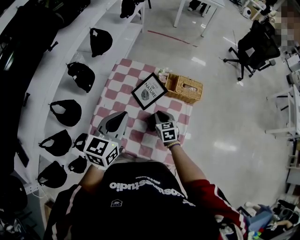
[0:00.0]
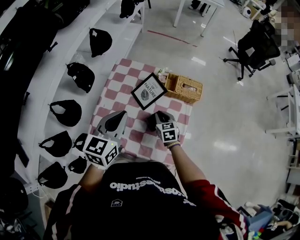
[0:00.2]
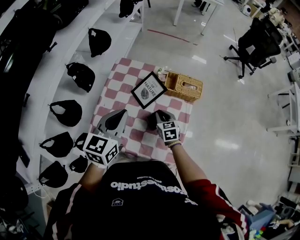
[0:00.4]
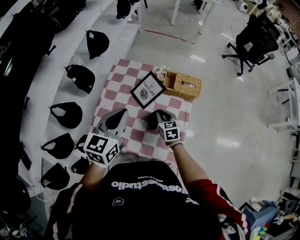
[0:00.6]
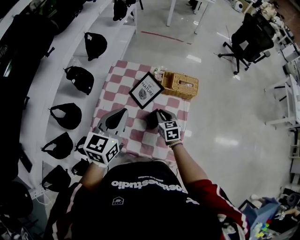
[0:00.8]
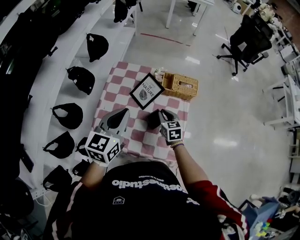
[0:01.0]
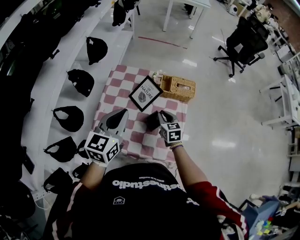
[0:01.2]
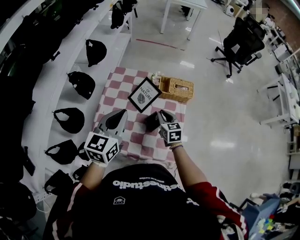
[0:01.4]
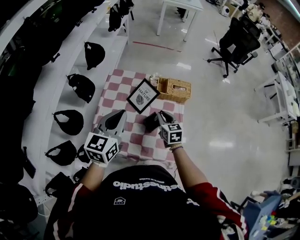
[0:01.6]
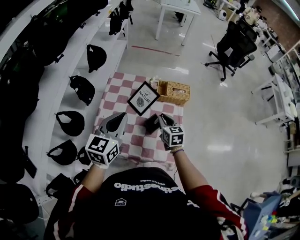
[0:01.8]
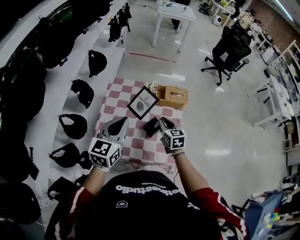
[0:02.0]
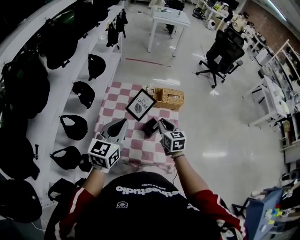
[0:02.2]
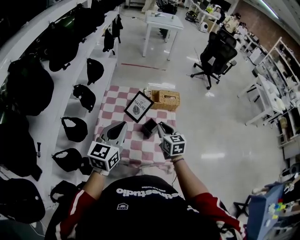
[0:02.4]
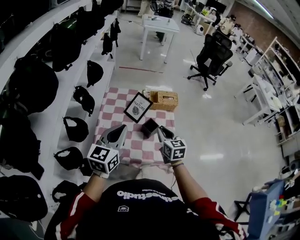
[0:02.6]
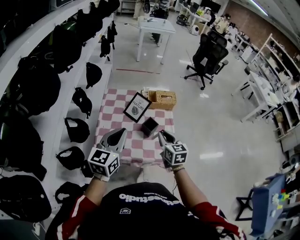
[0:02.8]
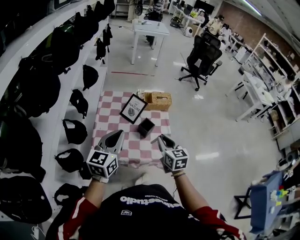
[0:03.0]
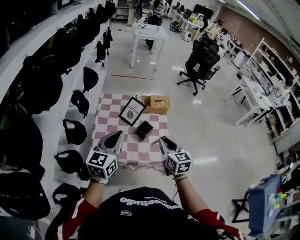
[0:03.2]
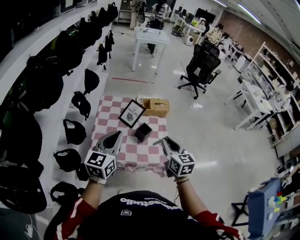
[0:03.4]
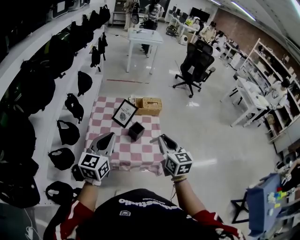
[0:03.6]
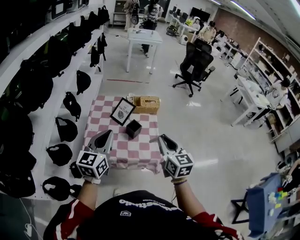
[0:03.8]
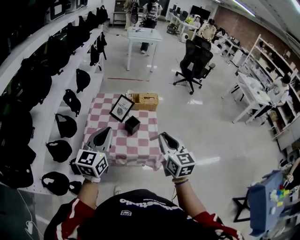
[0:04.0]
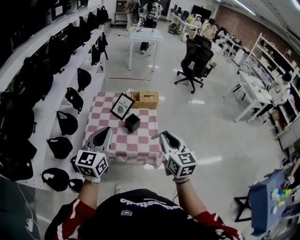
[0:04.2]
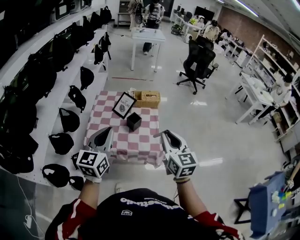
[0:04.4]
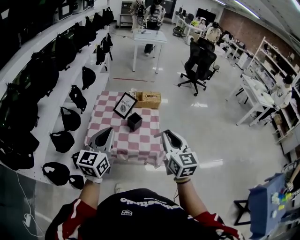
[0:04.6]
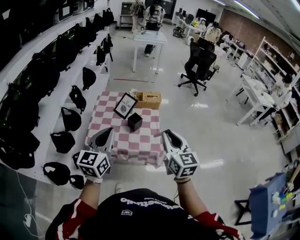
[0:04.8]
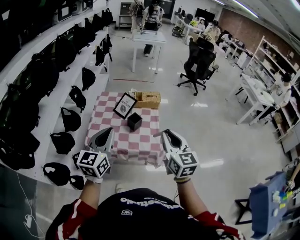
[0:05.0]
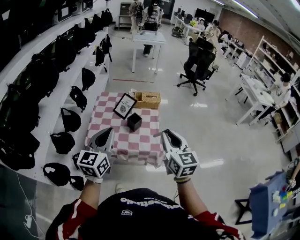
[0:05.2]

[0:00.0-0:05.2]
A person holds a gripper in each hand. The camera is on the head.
0:00.0 to 0:01.8: The left gripper shifts by approximately 5 cm, while the right gripper moves upward, roughly 10 cm.
0:01.8 to 0:03.4: The right gripper moves backward and upward, approximately 30 cm; the left gripper shifts about 15 cm backward.
0:03.4 to 0:05.2: The left gripper heads backward and to the right, covering roughly 15 cm, while the right gripper goes roughly 15 cm backward, upward and to the right.

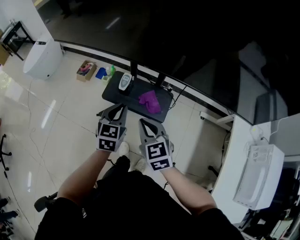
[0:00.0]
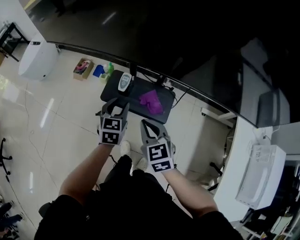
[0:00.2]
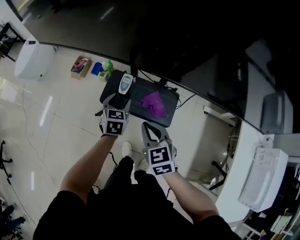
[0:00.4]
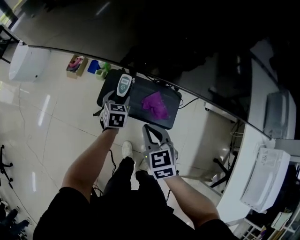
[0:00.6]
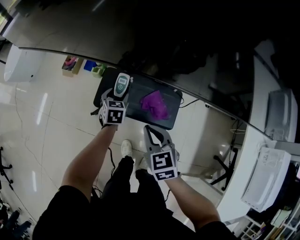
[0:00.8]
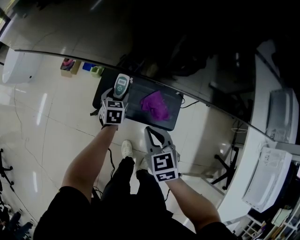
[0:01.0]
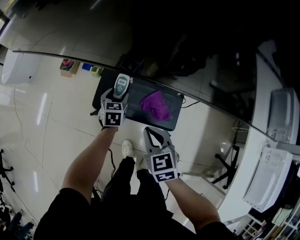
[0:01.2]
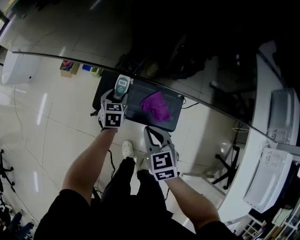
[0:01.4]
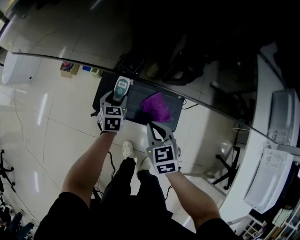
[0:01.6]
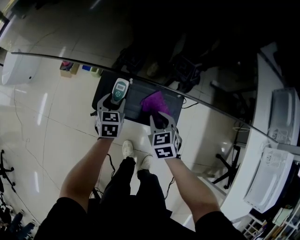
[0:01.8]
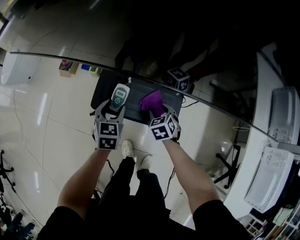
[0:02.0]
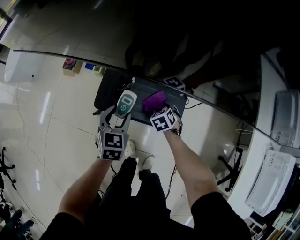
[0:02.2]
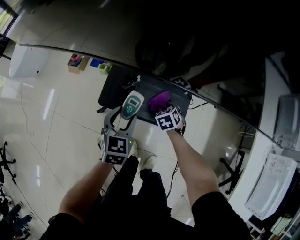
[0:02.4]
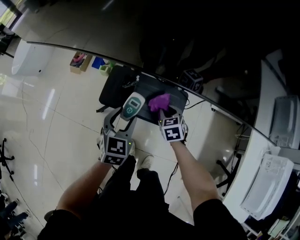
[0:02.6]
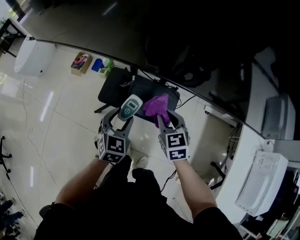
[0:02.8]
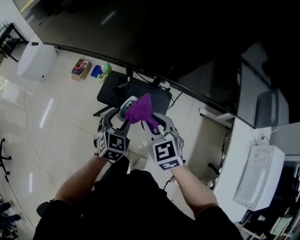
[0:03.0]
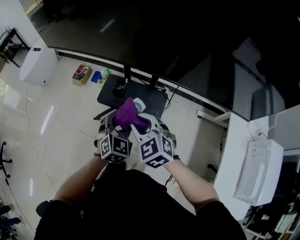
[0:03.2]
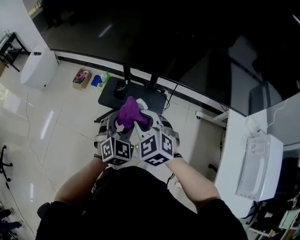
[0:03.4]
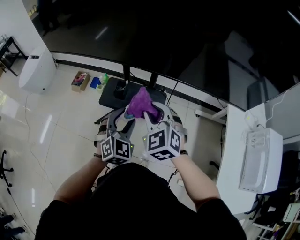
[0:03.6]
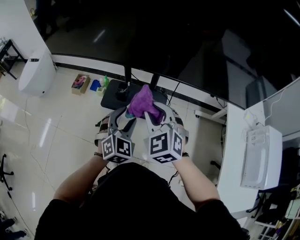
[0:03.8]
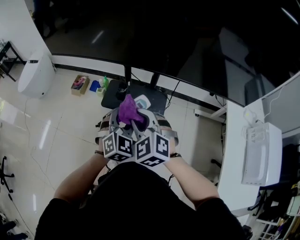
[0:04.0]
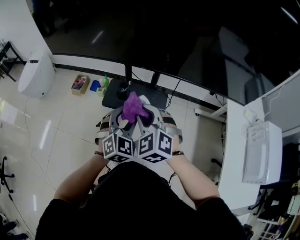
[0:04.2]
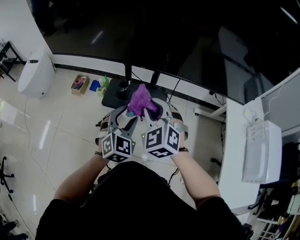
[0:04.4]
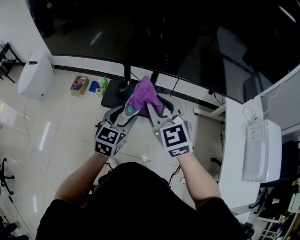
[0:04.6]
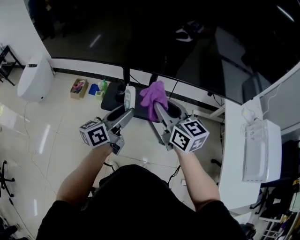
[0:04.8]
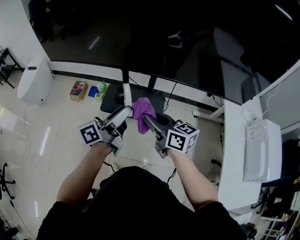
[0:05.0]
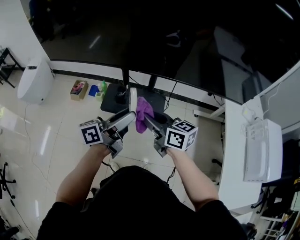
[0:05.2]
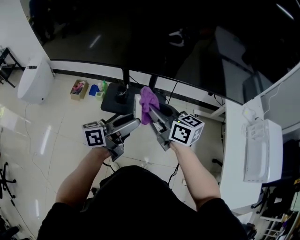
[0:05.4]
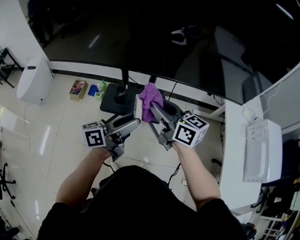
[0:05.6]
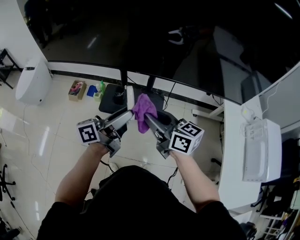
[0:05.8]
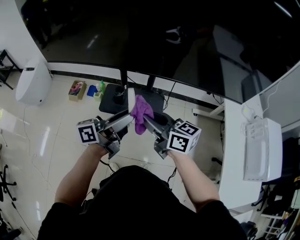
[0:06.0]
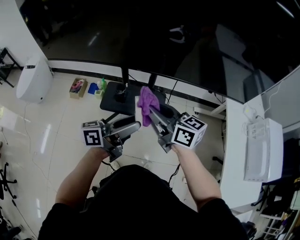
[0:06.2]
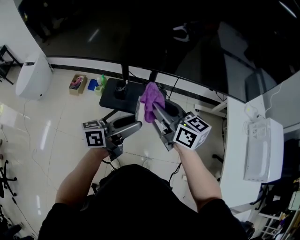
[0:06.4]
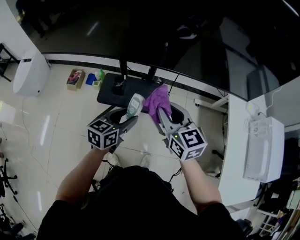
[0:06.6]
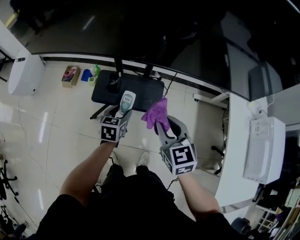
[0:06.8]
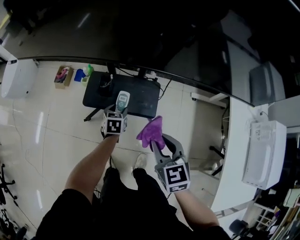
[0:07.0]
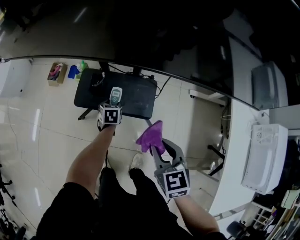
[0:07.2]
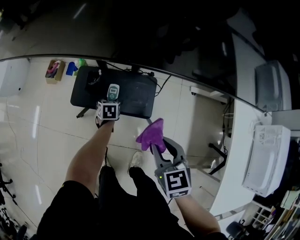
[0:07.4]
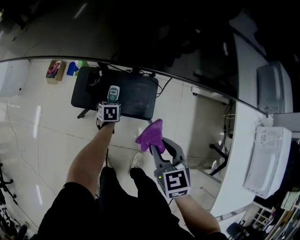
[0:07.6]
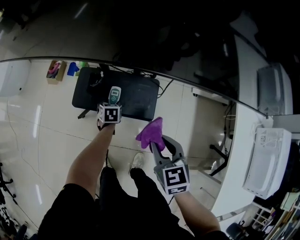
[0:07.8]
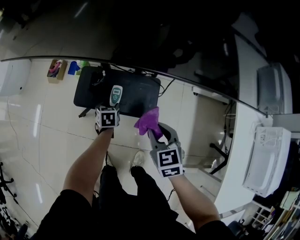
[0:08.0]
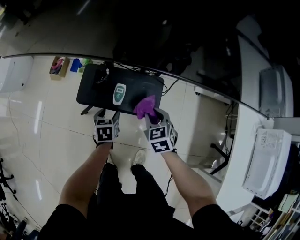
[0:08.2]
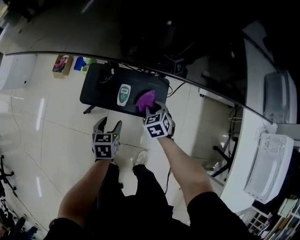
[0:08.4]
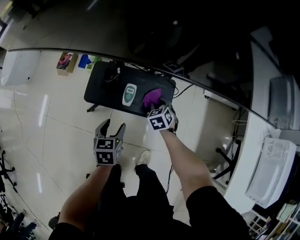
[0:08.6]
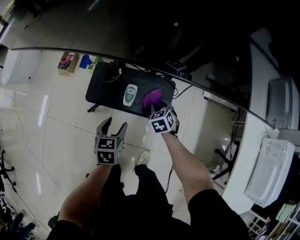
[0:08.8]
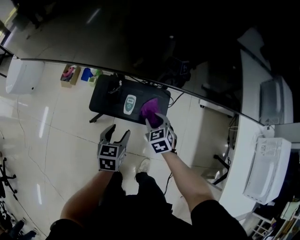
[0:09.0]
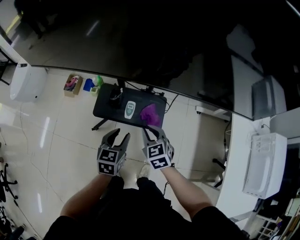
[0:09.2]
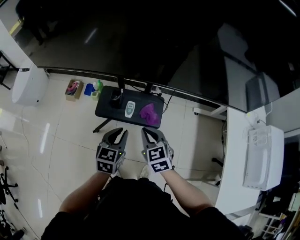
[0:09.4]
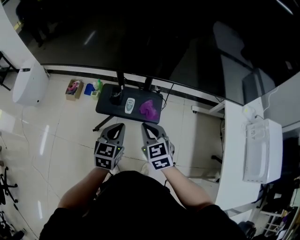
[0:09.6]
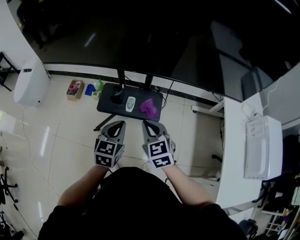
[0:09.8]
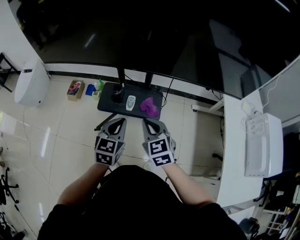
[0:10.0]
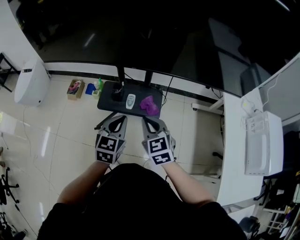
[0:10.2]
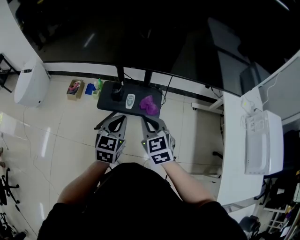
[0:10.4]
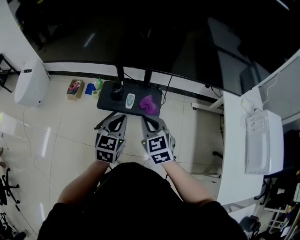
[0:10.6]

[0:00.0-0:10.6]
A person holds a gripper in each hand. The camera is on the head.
0:00.0 to 0:01.6: The grippers both shift downward and forward by roughly 25 cm. The left gripper opens up.
0:01.6 to 0:03.0: The left gripper moves backward and upward, approximately 25 cm, and changes its angle by about 20 degrees, while the right gripper shifts some 20 cm upward and backward, swivels approximately 20 degrees, and opens, then closes again.
0:03.0 to 0:04.6: The right gripper moves upward, approximately 15 cm; the left gripper moves upward and backward, roughly 15 cm, and turns by about 20 degrees.
0:04.6 to 0:06.0: The right gripper twists approximately 50 degrees clockwise, seen from behind. Meanwhile the left gripper heads upward, covering about 5 cm, and points its fingers roughly 40 degrees further upward.
0:06.0 to 0:07.6: The left gripper travels downward and forward by some 50 cm, and tips its fingers downward by some 70 degrees. Meanwhile the right gripper goes some 25 cm downward and to the right, and tilts its fingers approximately 30 degrees downward.
0:07.6 to 0:09.0: The right gripper travels downward, forward and to the left by approximately 20 cm, while the left gripper goes about 25 cm upward and backward.
0:09.0 to 0:10.6: The grippers both shift upward and backward by approximately 25 cm. The right gripper swivels approximately 20 degrees, and closes its fingers; the left gripper swivels about 20 degrees, and closes up.

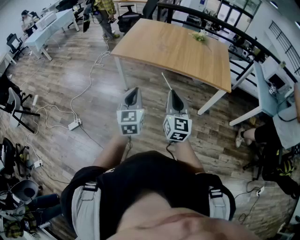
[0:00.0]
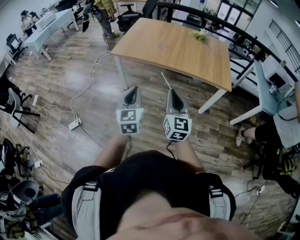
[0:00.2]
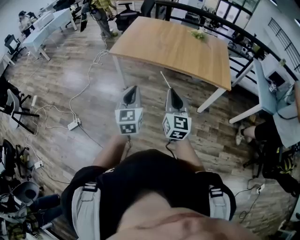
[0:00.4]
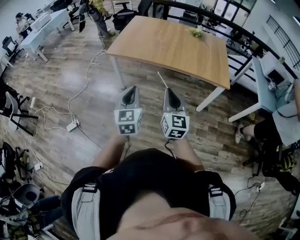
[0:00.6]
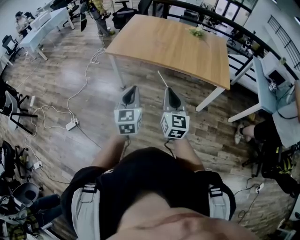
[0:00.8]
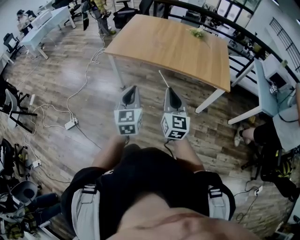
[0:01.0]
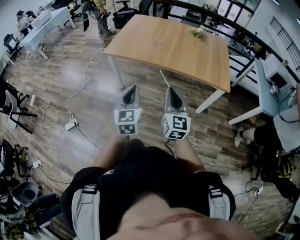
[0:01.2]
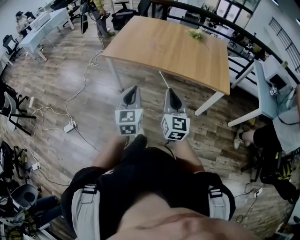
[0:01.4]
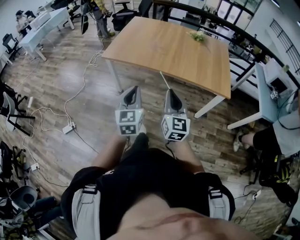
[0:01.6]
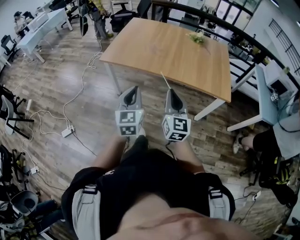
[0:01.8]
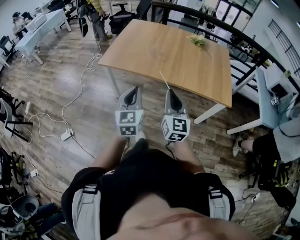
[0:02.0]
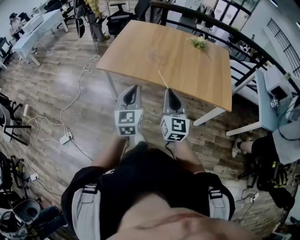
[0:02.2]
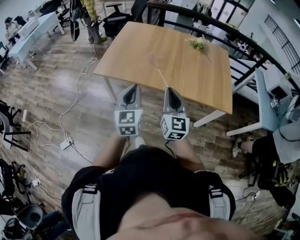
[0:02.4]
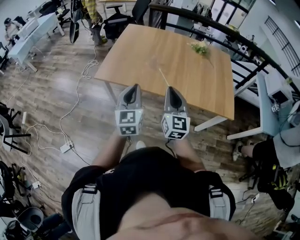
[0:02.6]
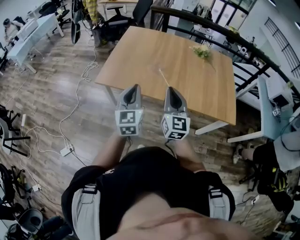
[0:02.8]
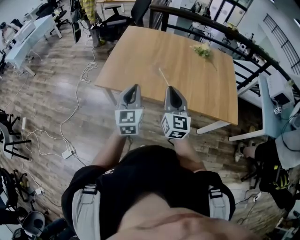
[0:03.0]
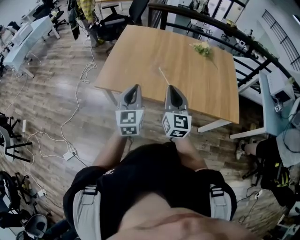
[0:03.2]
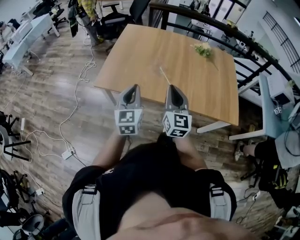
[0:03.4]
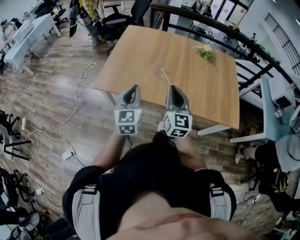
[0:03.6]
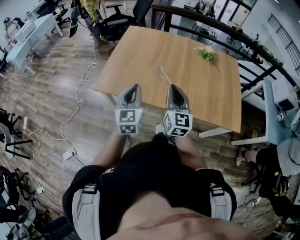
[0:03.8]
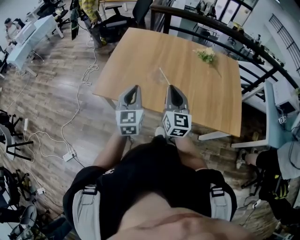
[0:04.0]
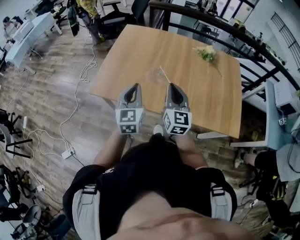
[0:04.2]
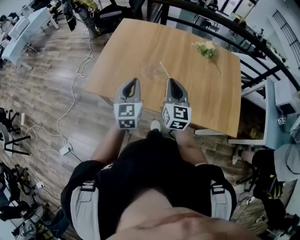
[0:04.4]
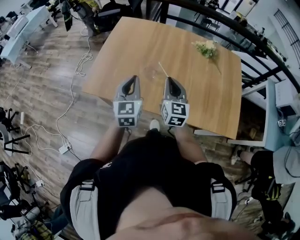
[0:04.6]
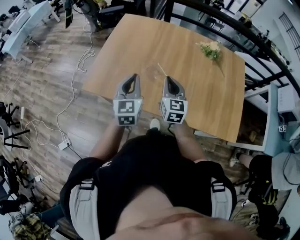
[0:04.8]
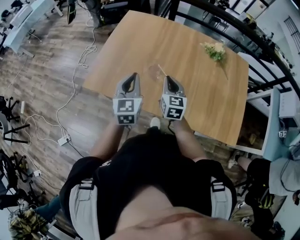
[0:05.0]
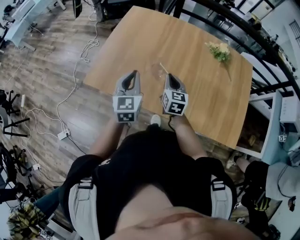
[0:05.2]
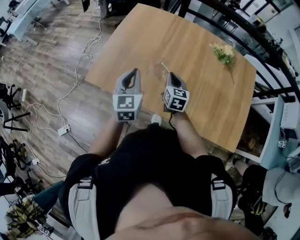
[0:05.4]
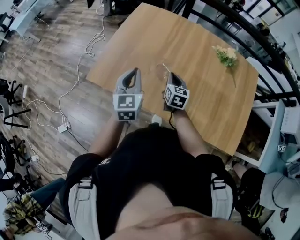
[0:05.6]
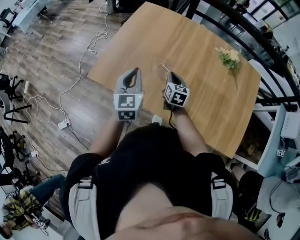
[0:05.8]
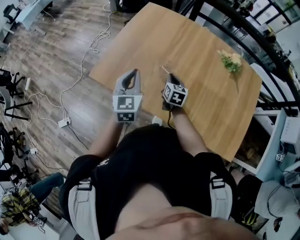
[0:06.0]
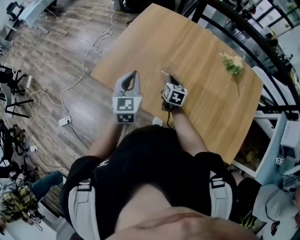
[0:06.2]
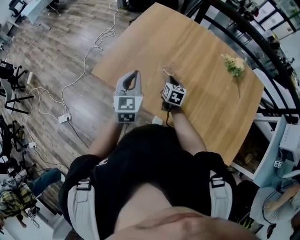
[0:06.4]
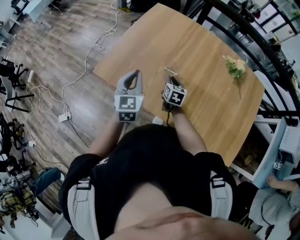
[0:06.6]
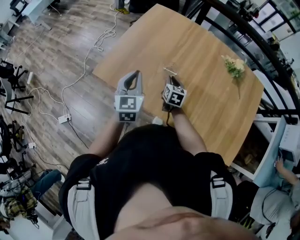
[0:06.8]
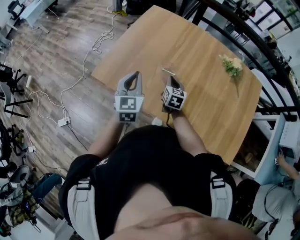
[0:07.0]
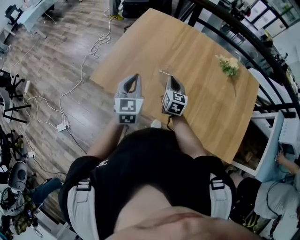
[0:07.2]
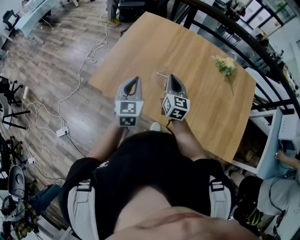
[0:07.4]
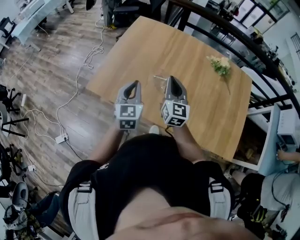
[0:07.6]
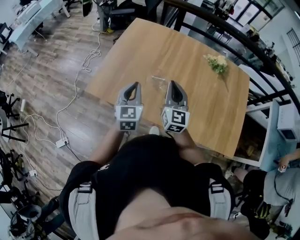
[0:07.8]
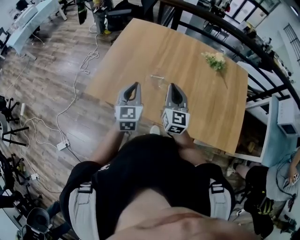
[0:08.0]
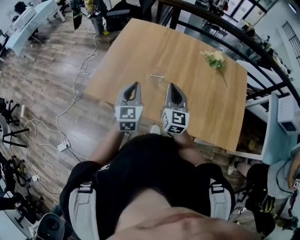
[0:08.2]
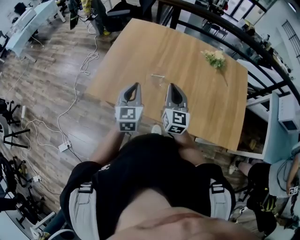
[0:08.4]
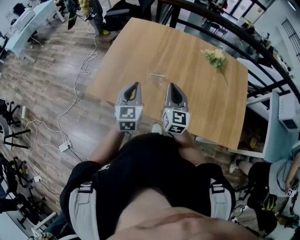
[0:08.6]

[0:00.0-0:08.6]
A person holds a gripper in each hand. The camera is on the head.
0:00.0 to 0:01.4: The left gripper travels forward and to the right by roughly 10 cm. The right gripper goes about 10 cm forward.
0:01.4 to 0:02.8: Both grippers travel together forward, roughly 30 cm.
0:02.8 to 0:04.4: The two grippers go roughly 20 cm forward.
0:04.4 to 0:05.8: The right gripper moves downward and forward, about 25 cm, and turns by approximately 30 degrees. Meanwhile the left gripper shifts some 10 cm forward.
0:05.8 to 0:07.2: The grippers stay close to where they were, moving slightly.
0:07.2 to 0:08.6: The right gripper is displaced upward and backward by roughly 15 cm.
